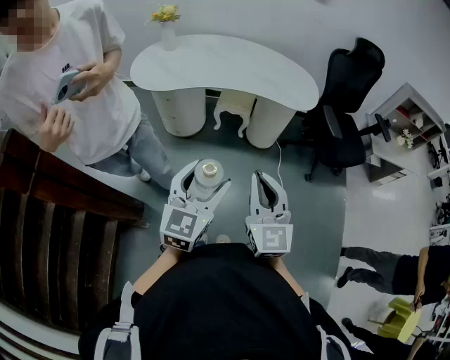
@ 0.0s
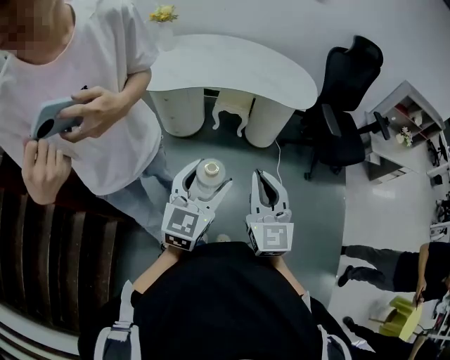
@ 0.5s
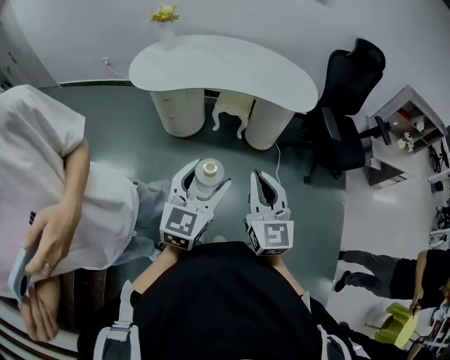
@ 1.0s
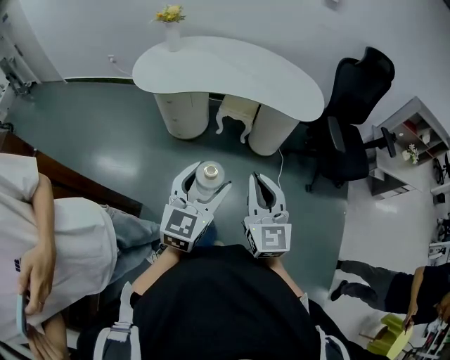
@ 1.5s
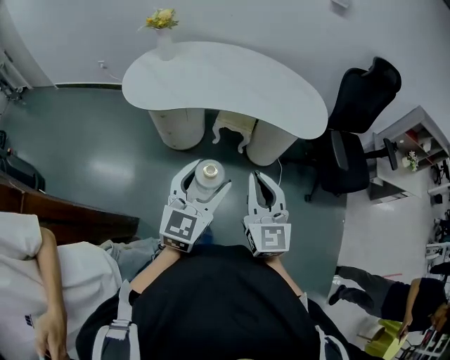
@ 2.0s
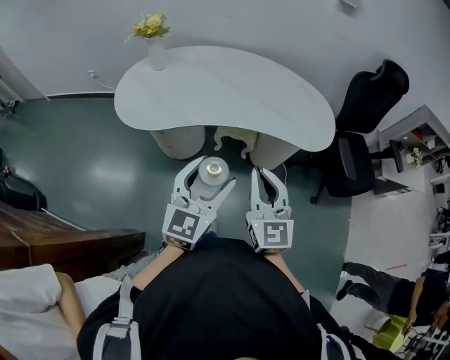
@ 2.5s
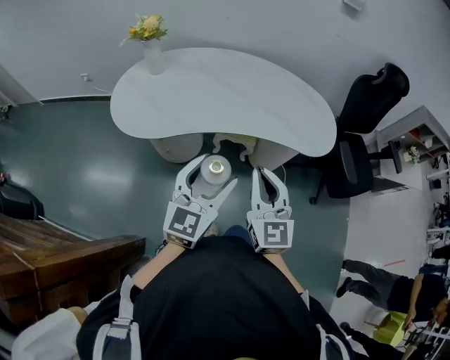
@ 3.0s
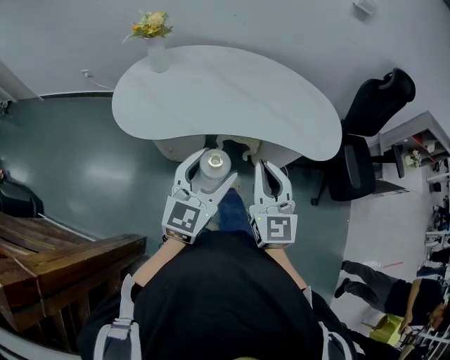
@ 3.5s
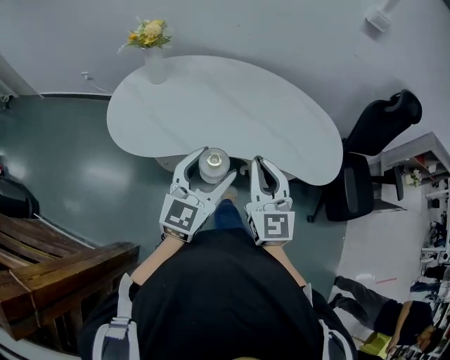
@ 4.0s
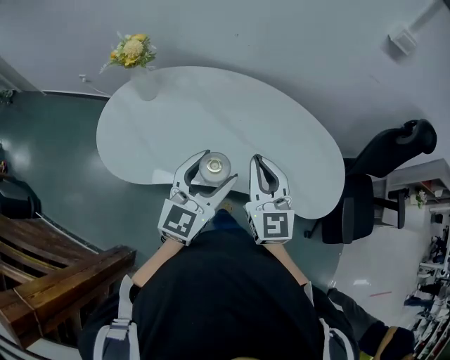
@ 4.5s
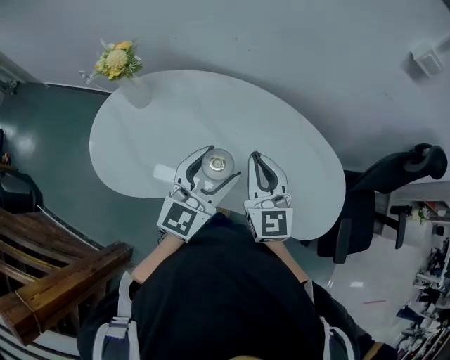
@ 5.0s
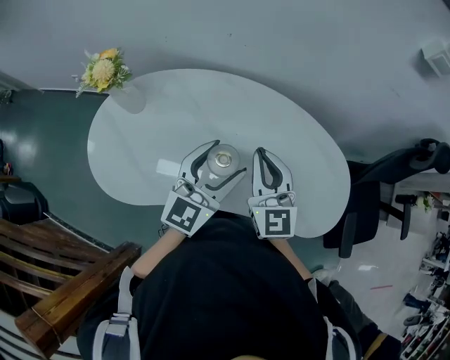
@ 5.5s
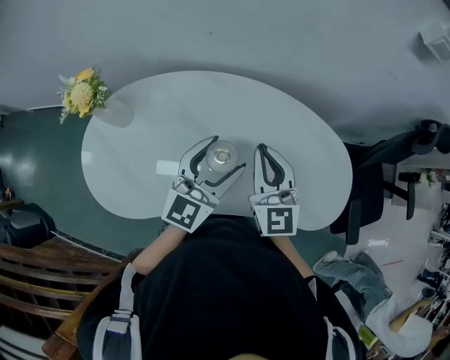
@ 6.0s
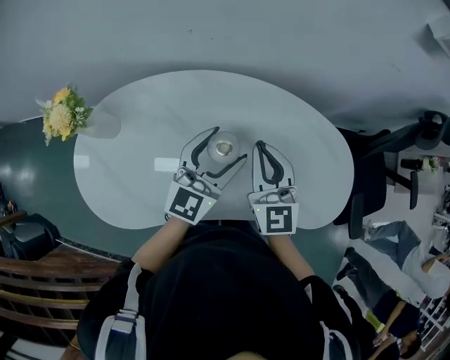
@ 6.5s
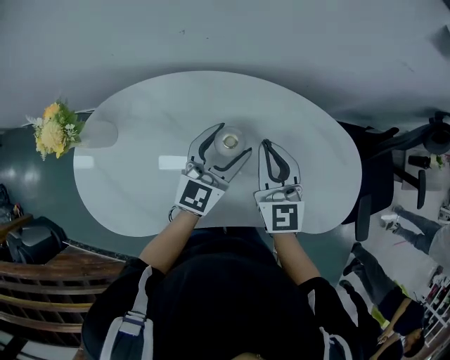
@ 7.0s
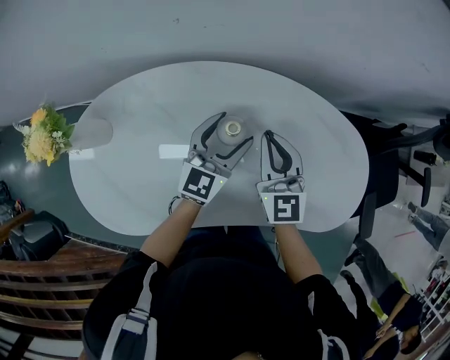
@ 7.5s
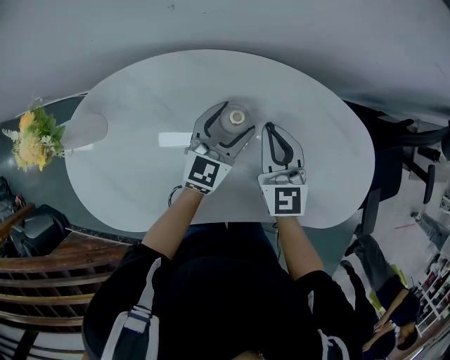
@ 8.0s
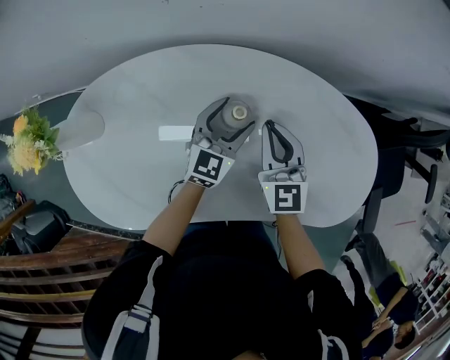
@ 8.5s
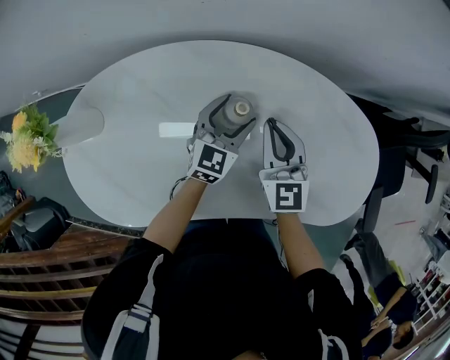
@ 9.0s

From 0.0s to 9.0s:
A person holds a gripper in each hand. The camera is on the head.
From 0.0s to 2.0s: The grippers both shift forward by some 15 cm.
From 2.0s to 4.5s: The pair of grippers is taken forward, about 40 cm.
From 4.5s to 7.0s: The two grippers go roughly 30 cm forward and downward.
From 7.0s to 9.0s: The two grippers go approximately 10 cm downward.

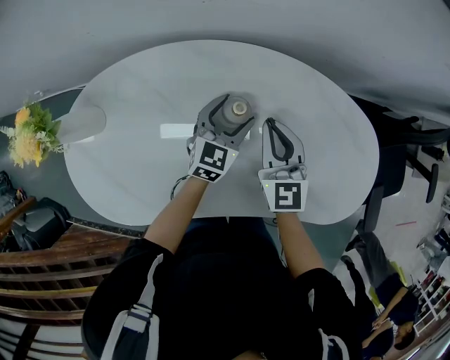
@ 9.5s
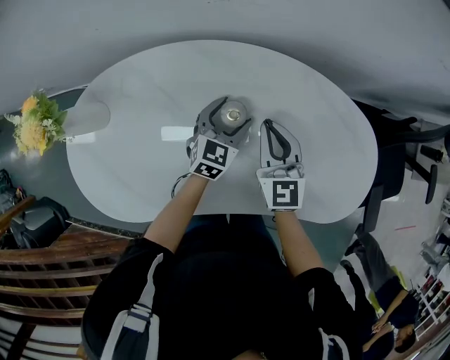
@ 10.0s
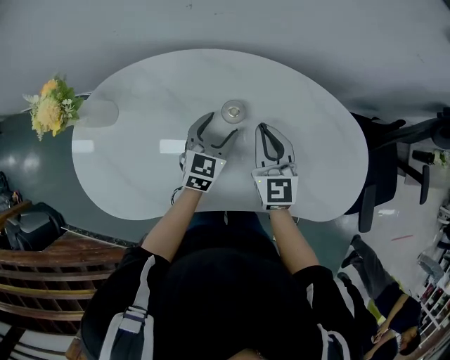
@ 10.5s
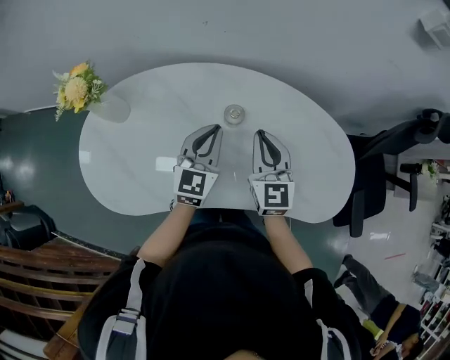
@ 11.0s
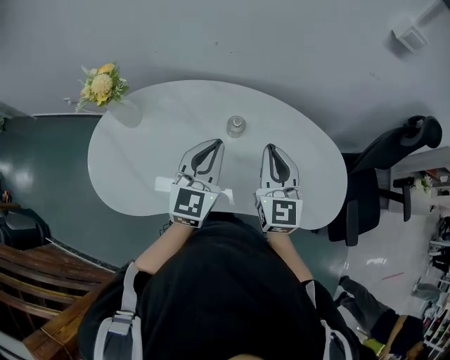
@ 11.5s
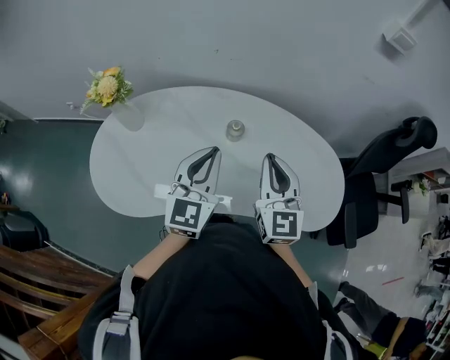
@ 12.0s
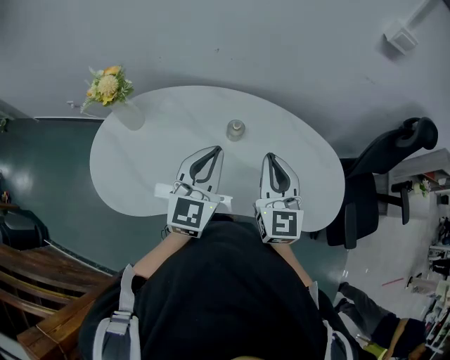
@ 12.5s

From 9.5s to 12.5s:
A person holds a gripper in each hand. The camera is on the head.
From 9.5s to 11.0s: The right gripper heads upward and backward, covering some 15 cm; the left gripper shifts some 20 cm upward and backward, turns by approximately 20 degrees, and closes.
From 11.0s to 12.5s: Both grippers move upward and backward, about 15 cm.

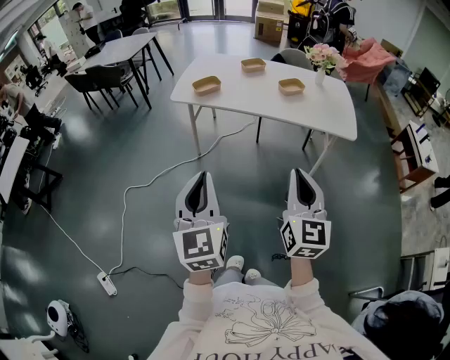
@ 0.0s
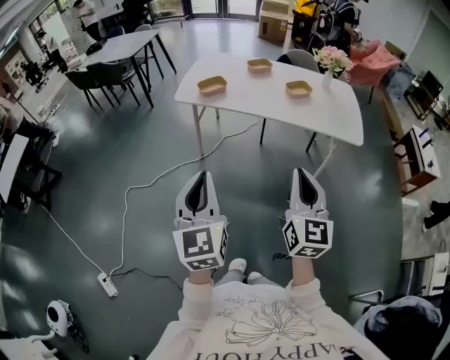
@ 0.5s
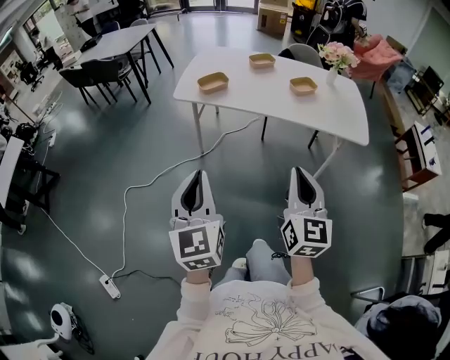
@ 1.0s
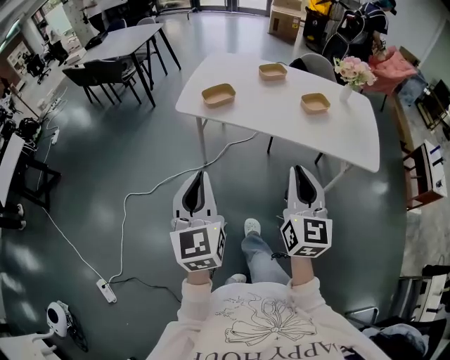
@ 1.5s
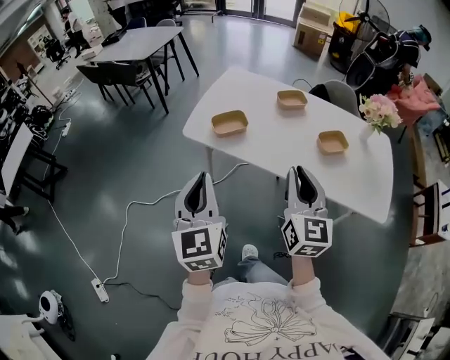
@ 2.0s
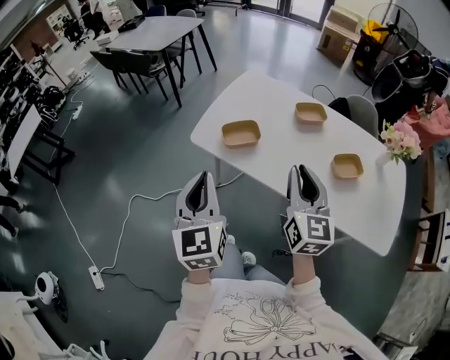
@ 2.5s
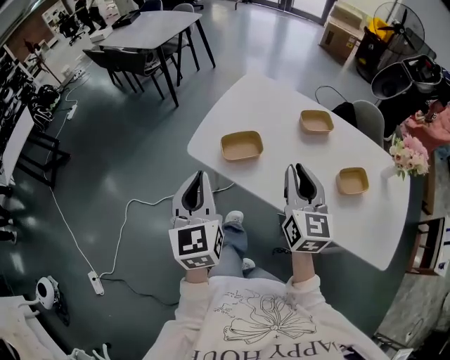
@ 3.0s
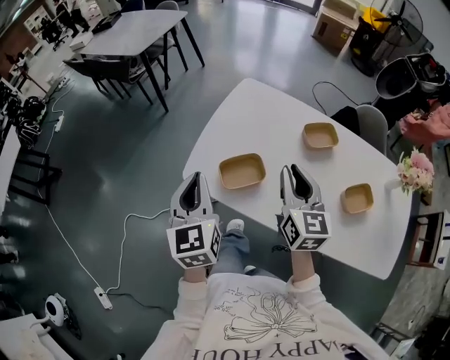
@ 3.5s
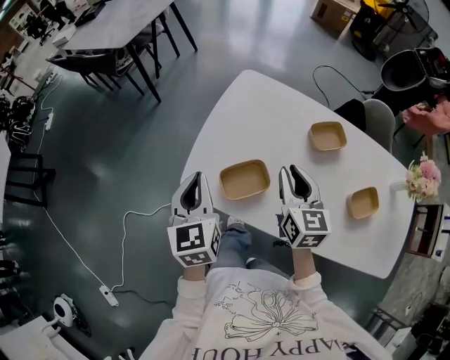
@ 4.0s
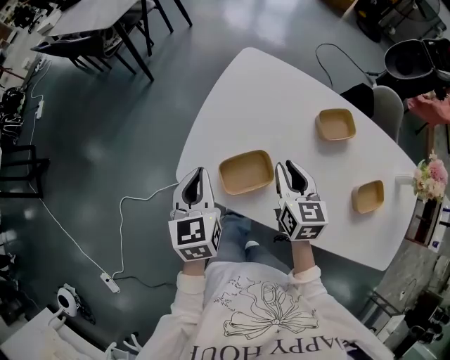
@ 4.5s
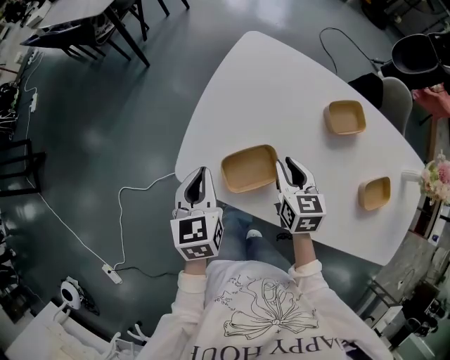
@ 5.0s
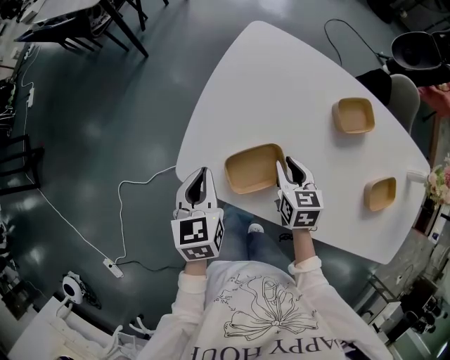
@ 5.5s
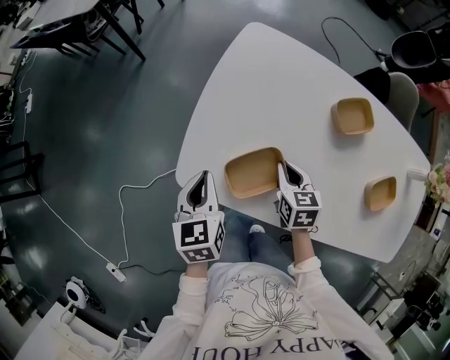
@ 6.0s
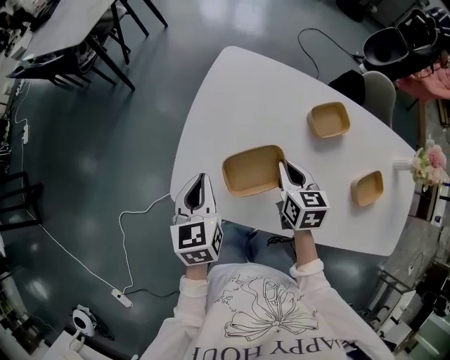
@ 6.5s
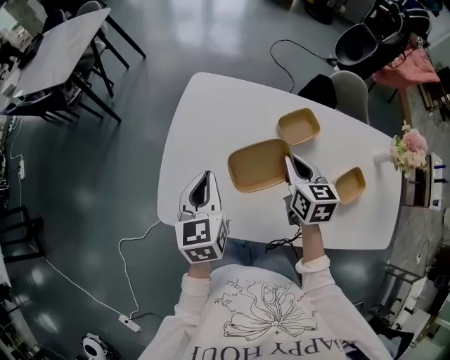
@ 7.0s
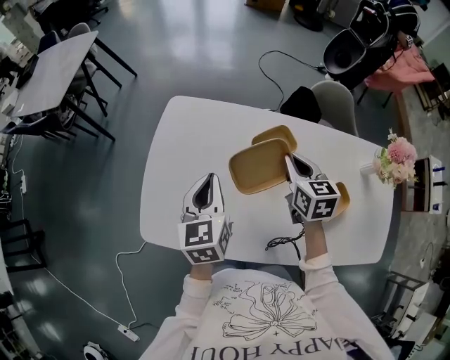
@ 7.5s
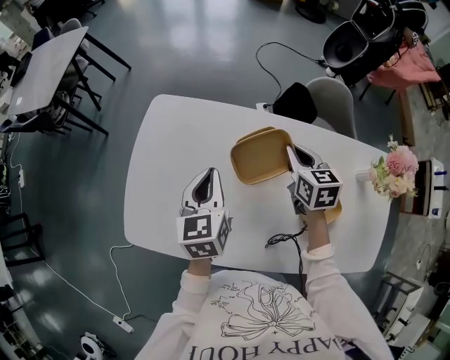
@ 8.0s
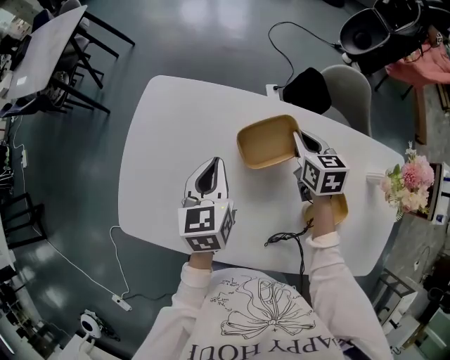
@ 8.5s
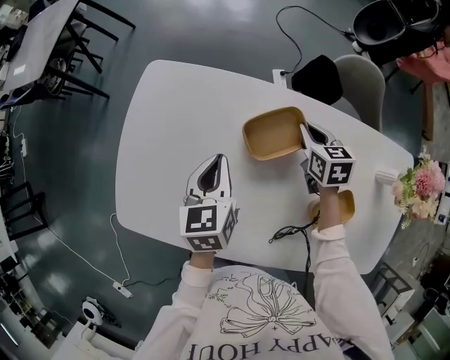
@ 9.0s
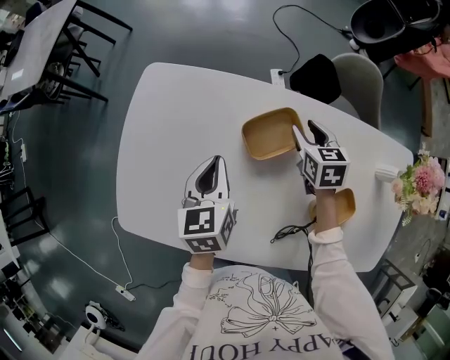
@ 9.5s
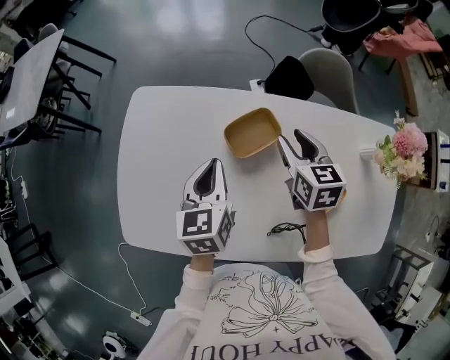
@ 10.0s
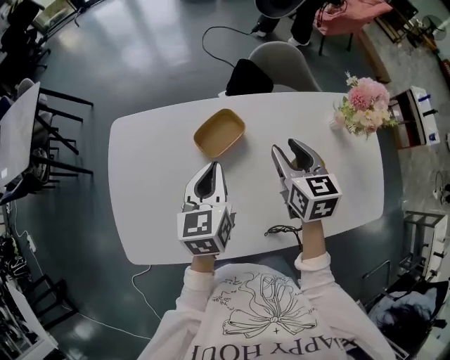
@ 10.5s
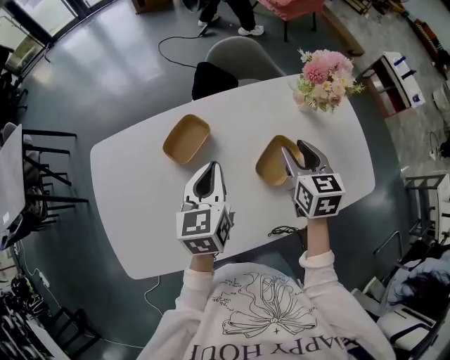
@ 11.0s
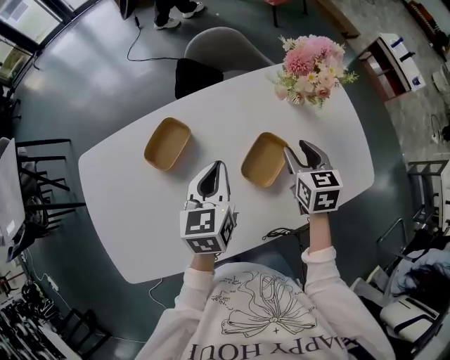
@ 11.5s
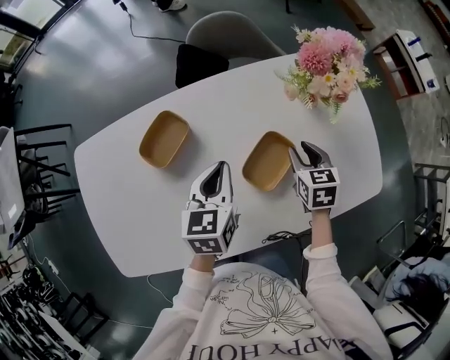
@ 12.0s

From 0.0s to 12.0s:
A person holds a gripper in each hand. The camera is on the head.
From 0.0s to 2.0s: The two grippers go approximately 40 cm forward.
From 2.0s to 4.0s: The two grippers travel together, forward, approximately 40 cm. The right gripper swivels about 20 degrees.
From 4.0s to 6.0s: Both grippers travel together downward, some 20 cm. The right gripper rotates roughly 30 degrees.
From 6.0s to 8.0s: The left gripper moves to the right and forward, roughly 35 cm, while the right gripper heads to the right, forward and upward, covering roughly 40 cm.
From 8.0s to 10.0s: The right gripper goes downward and returns, approximately 10 cm each way, and opens its fingers, while the left gripper goes downward and returns, about 10 cm each way.
From 10.0s to 12.0s: The right gripper shifts by approximately 35 cm, and swivels approximately 30 degrees. The left gripper changes place by approximately 25 cm, and changes its angle by some 30 degrees.

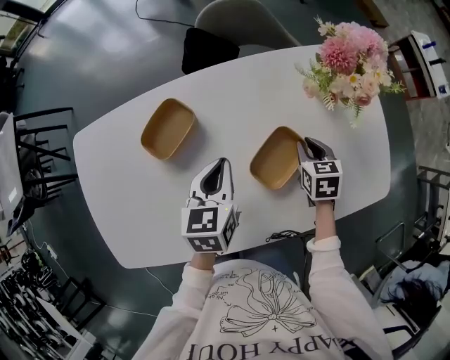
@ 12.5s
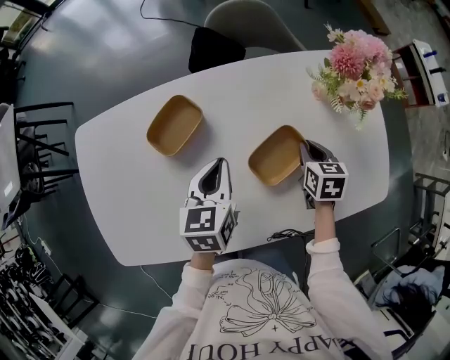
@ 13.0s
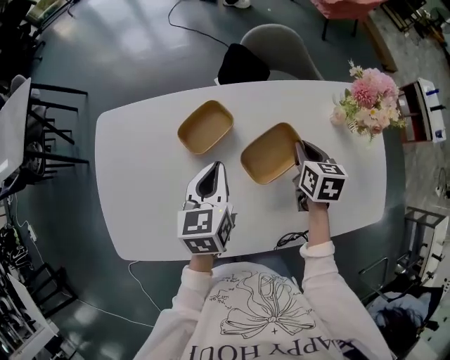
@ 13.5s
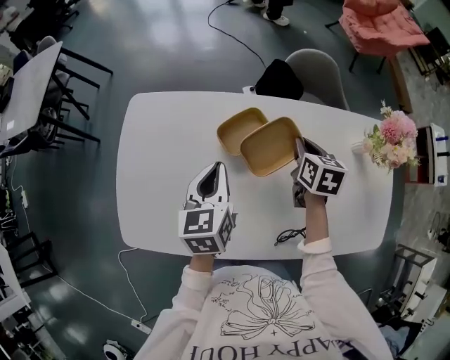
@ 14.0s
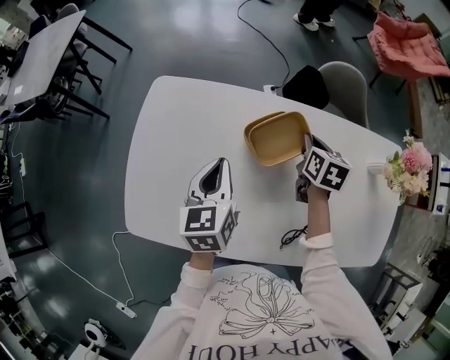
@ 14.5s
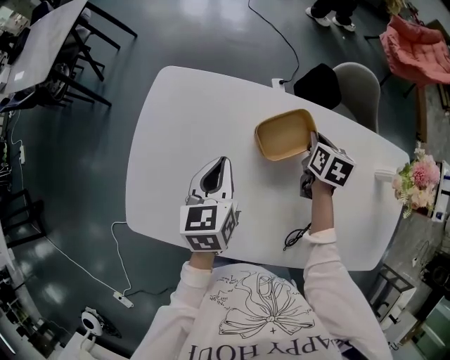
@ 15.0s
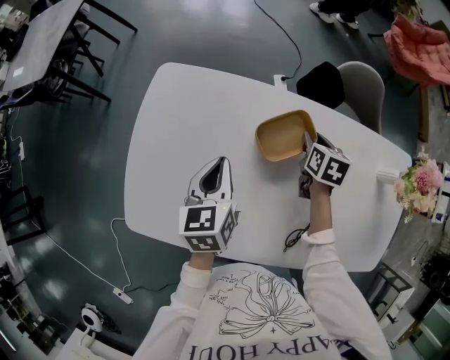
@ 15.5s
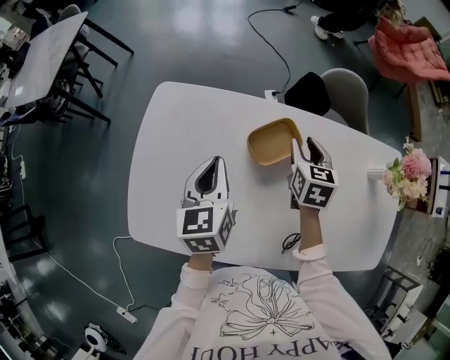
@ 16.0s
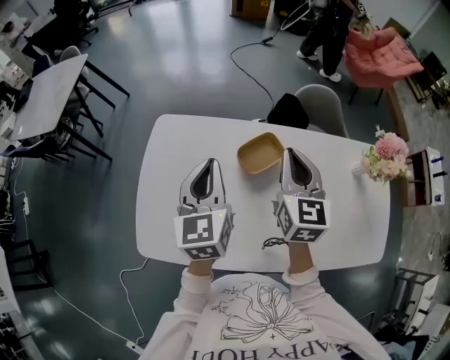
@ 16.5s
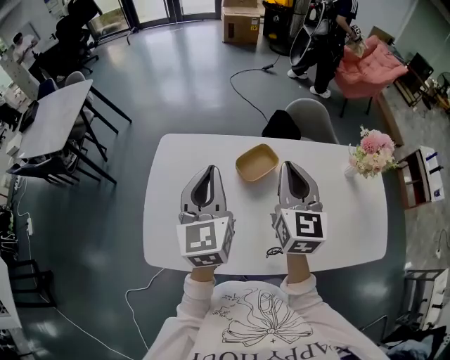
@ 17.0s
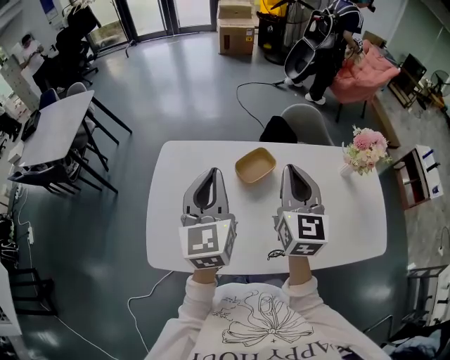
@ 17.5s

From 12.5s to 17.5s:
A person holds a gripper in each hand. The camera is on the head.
From 12.5s to 15.0s: The left gripper goes about 30 cm to the left, and swivels about 30 degrees, while the right gripper heads to the left and forward, covering about 35 cm.
From 15.0s to 17.5s: The right gripper shifts about 35 cm upward and backward, points its fingers about 40 degrees further upward, and opens, then closes again. The left gripper is displaced upward by approximately 25 cm, and rotates about 30 degrees.
